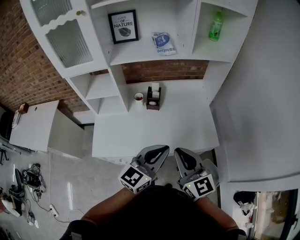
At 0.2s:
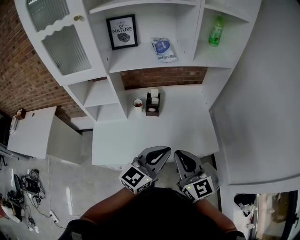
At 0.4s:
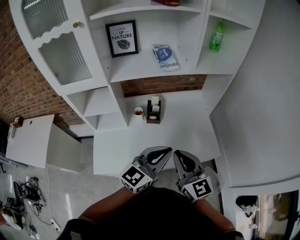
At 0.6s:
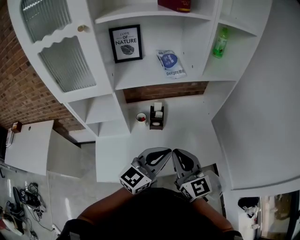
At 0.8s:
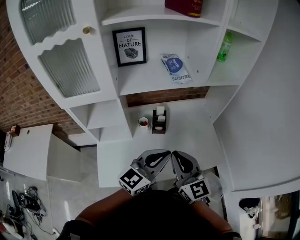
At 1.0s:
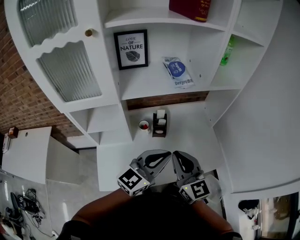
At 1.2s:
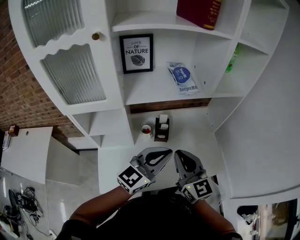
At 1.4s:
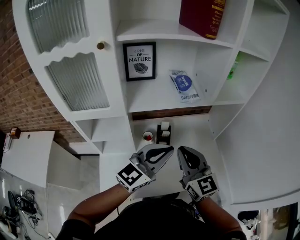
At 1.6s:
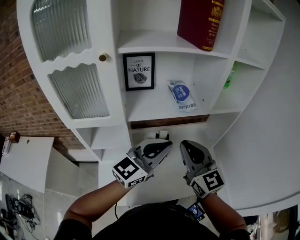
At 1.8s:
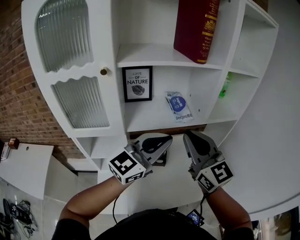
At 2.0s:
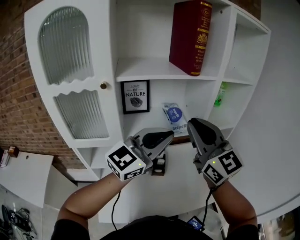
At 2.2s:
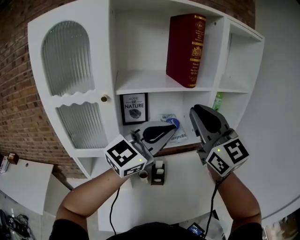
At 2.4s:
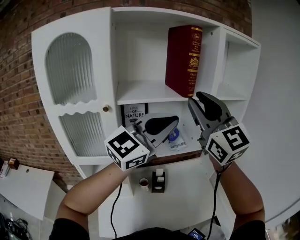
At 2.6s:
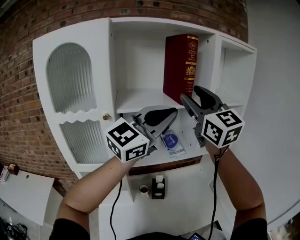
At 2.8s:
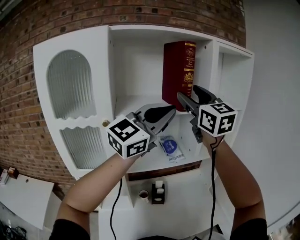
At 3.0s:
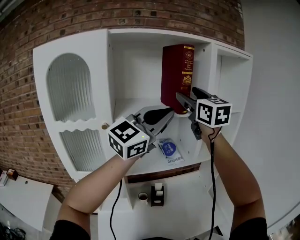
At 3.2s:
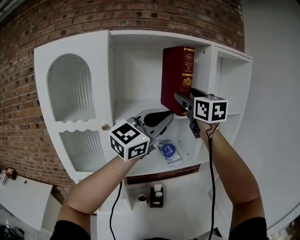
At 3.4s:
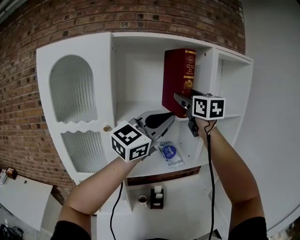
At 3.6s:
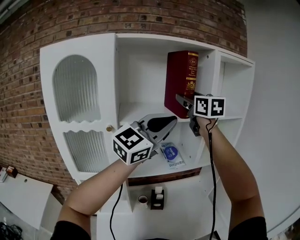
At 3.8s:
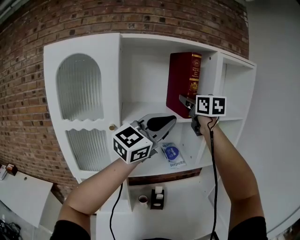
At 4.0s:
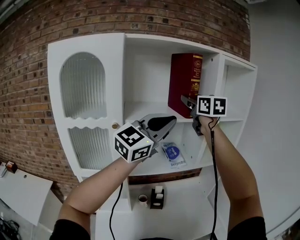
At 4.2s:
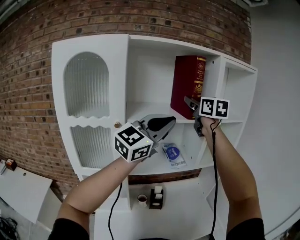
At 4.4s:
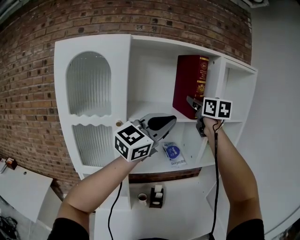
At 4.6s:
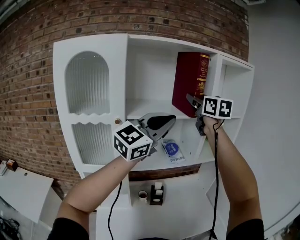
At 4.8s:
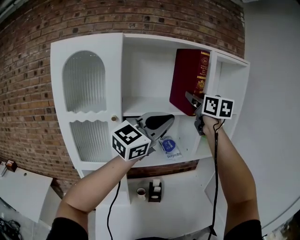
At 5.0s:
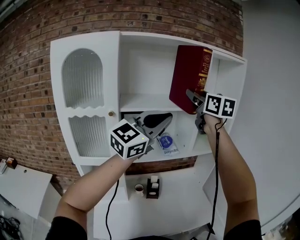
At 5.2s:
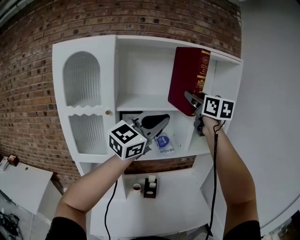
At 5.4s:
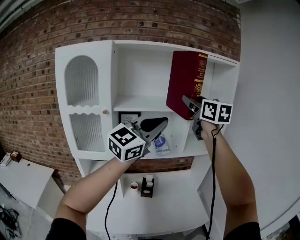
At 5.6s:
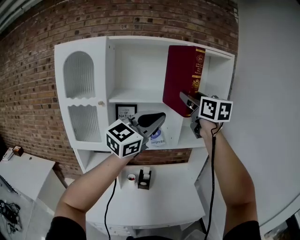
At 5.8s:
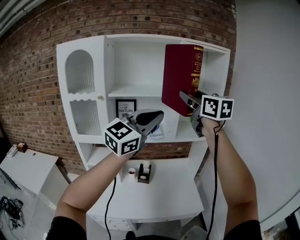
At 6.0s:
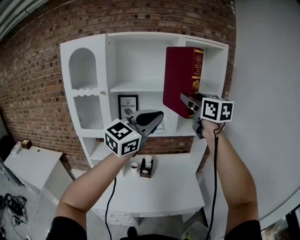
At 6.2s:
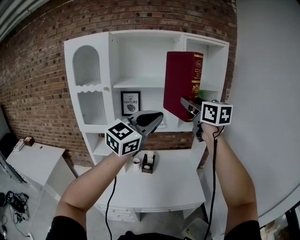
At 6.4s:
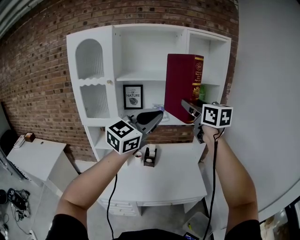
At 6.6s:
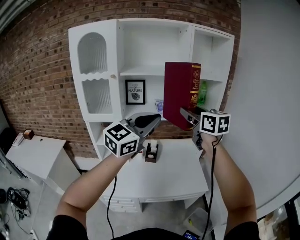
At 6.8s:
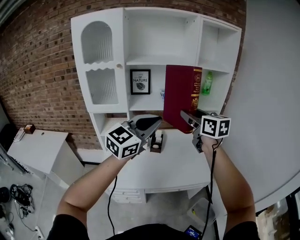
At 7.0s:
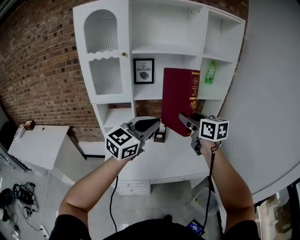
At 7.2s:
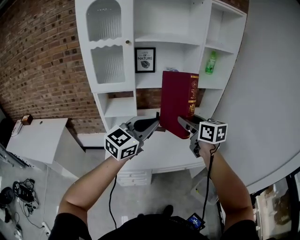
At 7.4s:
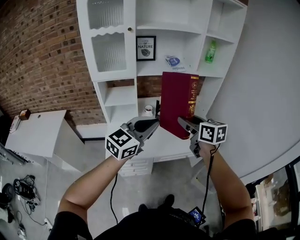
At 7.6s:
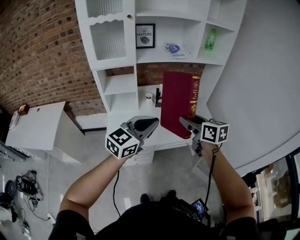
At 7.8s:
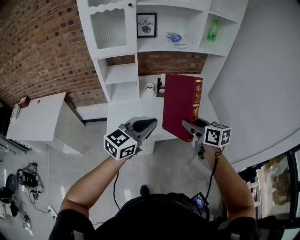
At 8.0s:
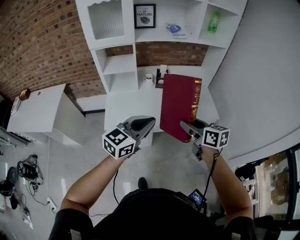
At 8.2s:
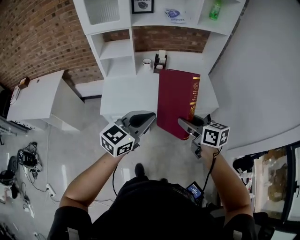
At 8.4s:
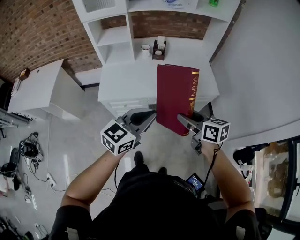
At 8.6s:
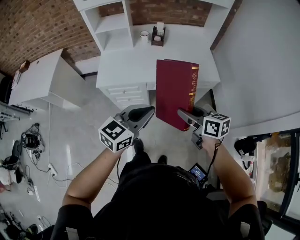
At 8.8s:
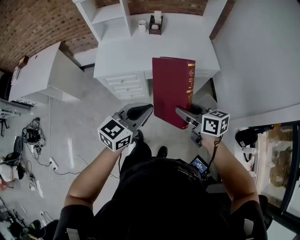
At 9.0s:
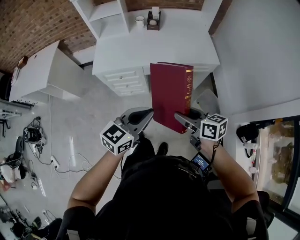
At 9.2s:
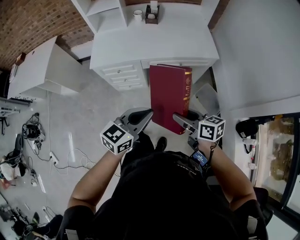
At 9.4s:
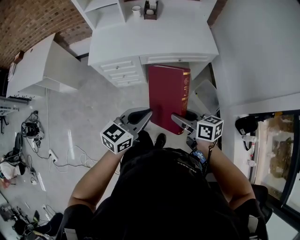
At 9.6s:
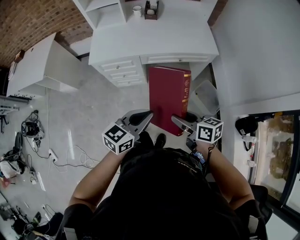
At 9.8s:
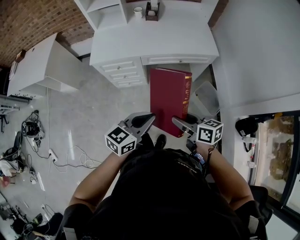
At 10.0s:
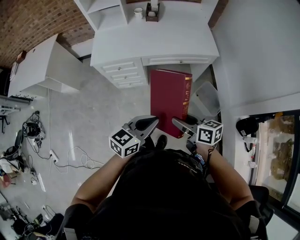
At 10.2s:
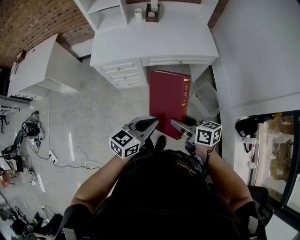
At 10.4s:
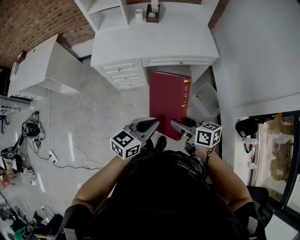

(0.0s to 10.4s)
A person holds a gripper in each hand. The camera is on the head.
0.0s - 1.4s: The right gripper heads forward and to the left, covering some 25 cm; the left gripper goes about 25 cm forward, to the left and upward.
1.4s - 3.0s: The right gripper moves upward and forward, about 40 cm, and opens, while the left gripper moves upward, about 35 cm, and turns by approximately 20 degrees.
3.0s - 4.4s: The grippers stay close to where they were, moving slightly.
4.4s - 6.0s: The left gripper heads to the right and backward, covering approximately 25 cm; the right gripper travels backward and to the right by about 25 cm.
6.0s - 7.4s: The grippers both shift downward, backward and to the left by some 40 cm. The left gripper turns by roughly 20 degrees. The right gripper rotates about 30 degrees.
7.4s - 9.0s: Both grippers move backward, downward and to the right, about 40 cm. The left gripper turns by some 20 degrees, while the right gripper changes its angle by approximately 30 degrees.
9.0s - 10.4s: The right gripper heads backward, covering about 5 cm. Meanwhile the left gripper shifts roughly 10 cm backward and downward.

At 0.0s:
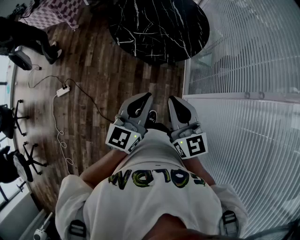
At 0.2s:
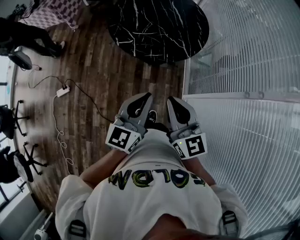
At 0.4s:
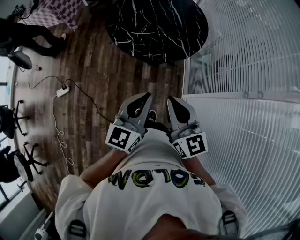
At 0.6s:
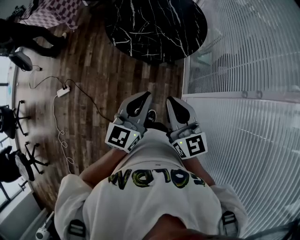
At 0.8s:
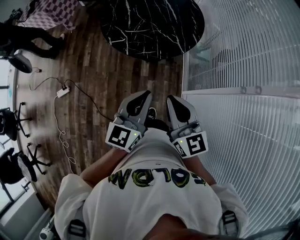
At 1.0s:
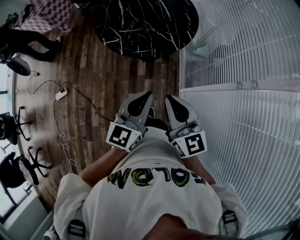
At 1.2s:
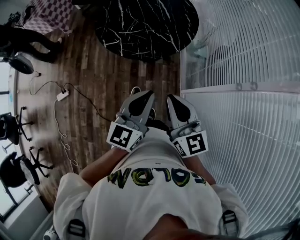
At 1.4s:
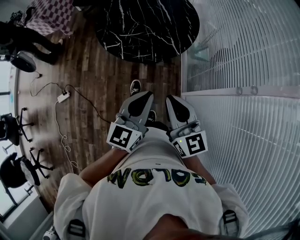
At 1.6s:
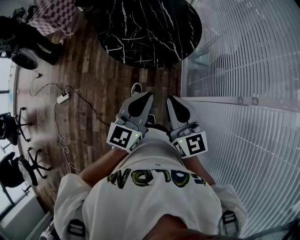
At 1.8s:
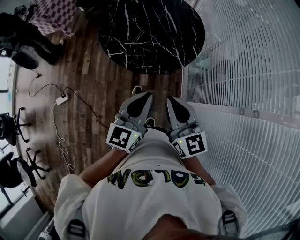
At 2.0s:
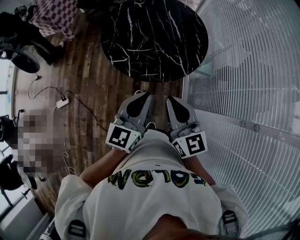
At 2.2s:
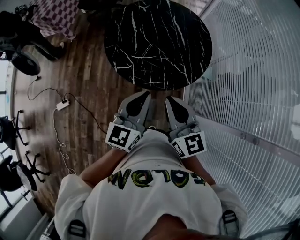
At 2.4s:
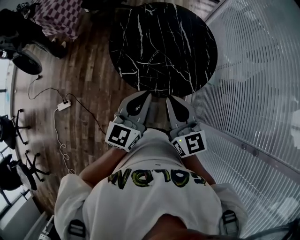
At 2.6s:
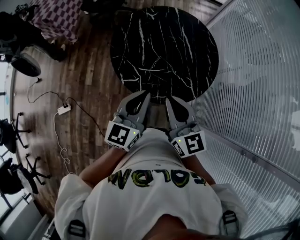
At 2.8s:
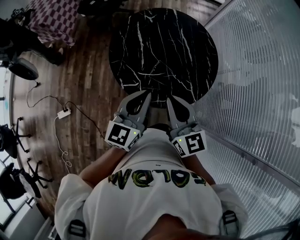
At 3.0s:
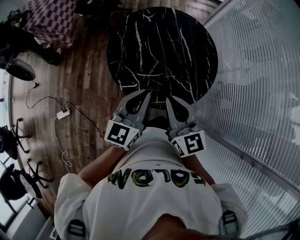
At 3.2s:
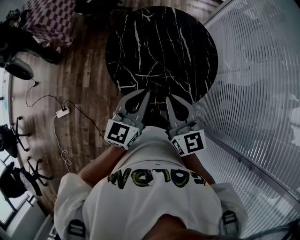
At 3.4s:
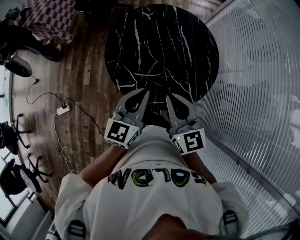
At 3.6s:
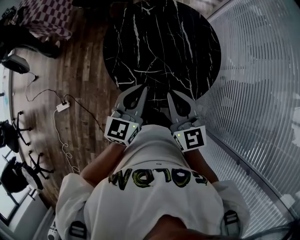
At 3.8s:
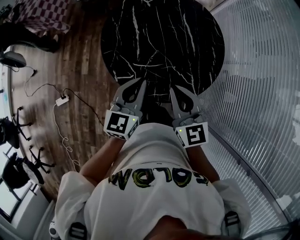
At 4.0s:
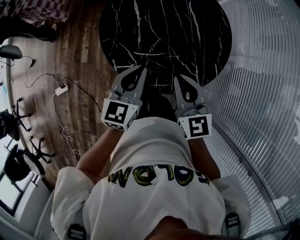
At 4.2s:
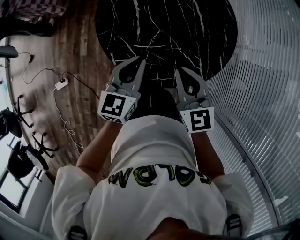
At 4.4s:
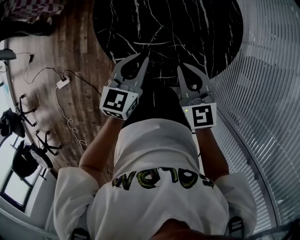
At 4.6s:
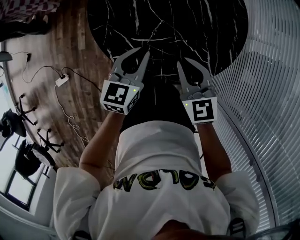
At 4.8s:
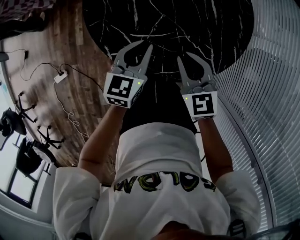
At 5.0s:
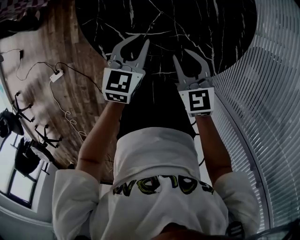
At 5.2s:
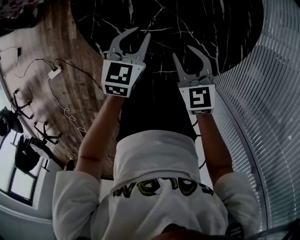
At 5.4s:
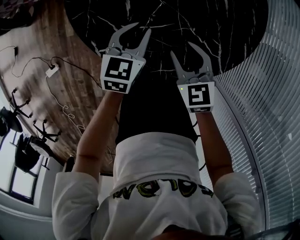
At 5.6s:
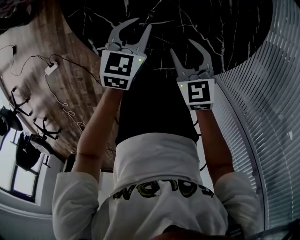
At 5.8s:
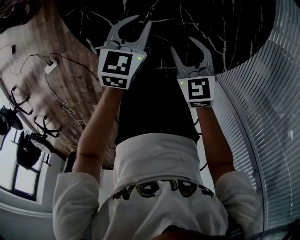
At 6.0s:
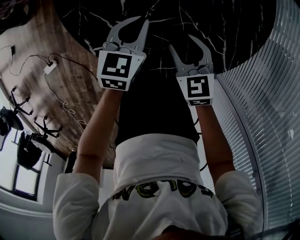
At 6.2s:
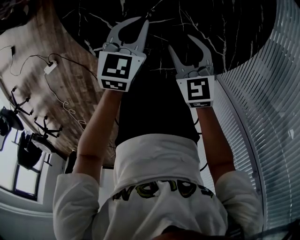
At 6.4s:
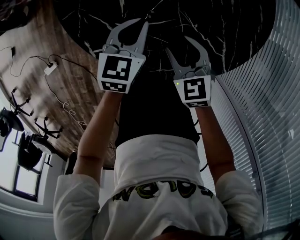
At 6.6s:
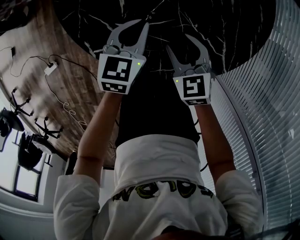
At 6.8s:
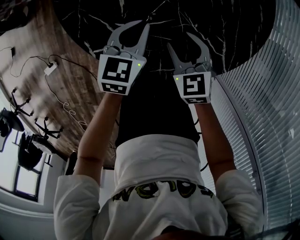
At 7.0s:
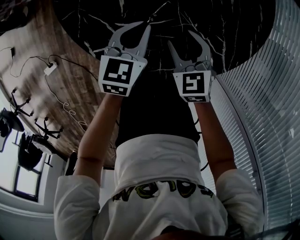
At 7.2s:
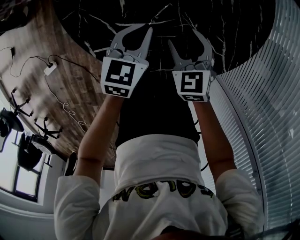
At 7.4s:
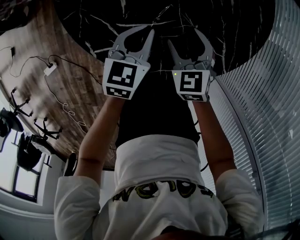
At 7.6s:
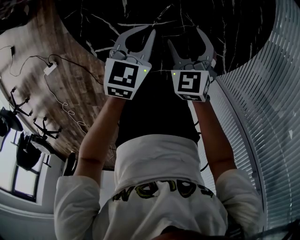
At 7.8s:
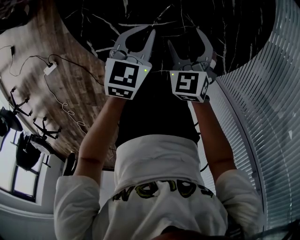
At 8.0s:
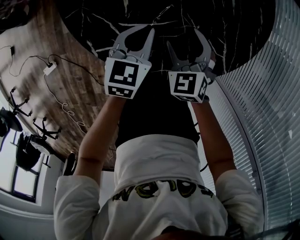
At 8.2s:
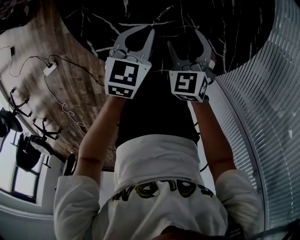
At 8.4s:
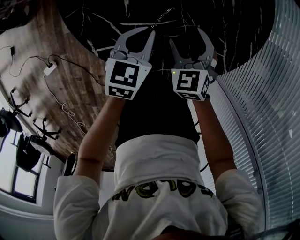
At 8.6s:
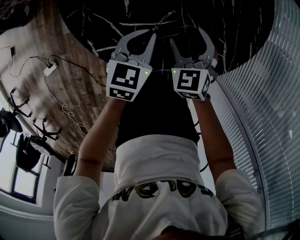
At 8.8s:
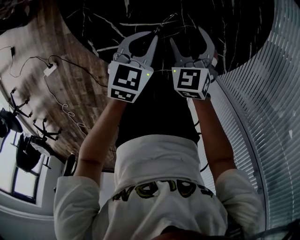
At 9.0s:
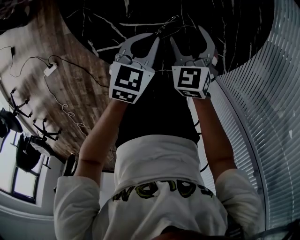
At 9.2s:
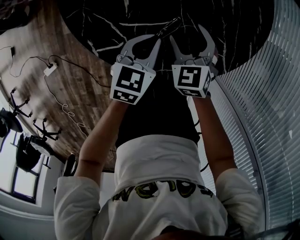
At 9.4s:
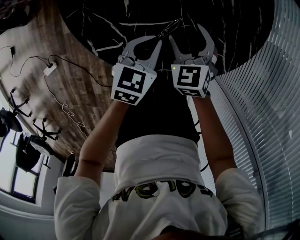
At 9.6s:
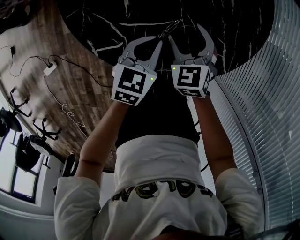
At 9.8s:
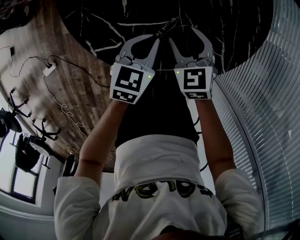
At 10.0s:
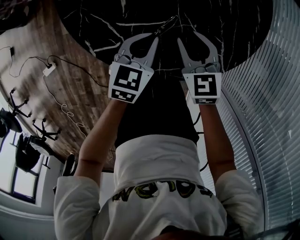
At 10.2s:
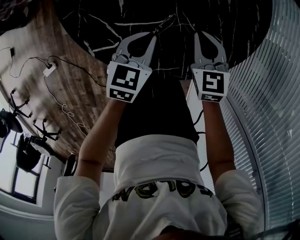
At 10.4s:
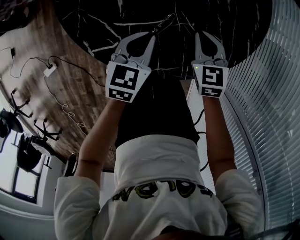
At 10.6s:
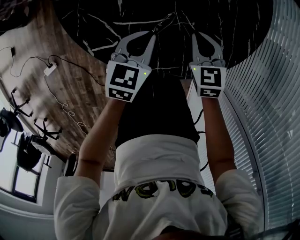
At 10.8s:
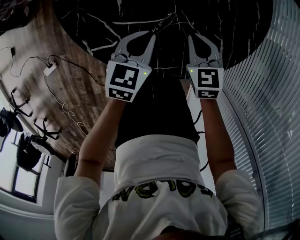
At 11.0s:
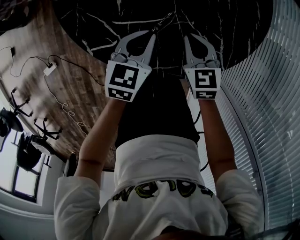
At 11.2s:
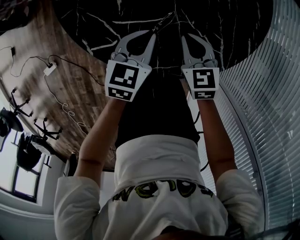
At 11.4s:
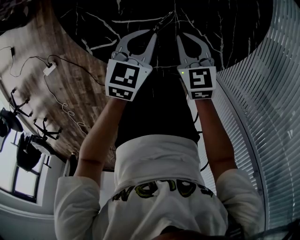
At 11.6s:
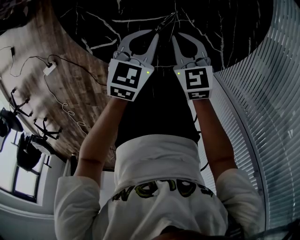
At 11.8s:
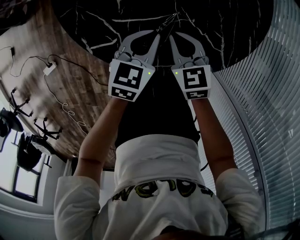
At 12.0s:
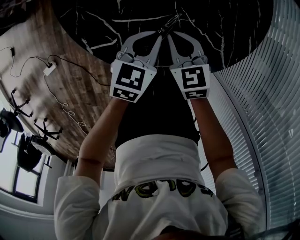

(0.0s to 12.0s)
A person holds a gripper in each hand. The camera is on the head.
0.0s - 1.6s: The two grippers go about 10 cm to the right and forward.
1.6s - 3.0s: Both grippers move forward and to the left, some 35 cm.
3.0s - 4.4s: Both grippers move downward and forward, some 20 cm.
4.4s - 6.0s: The grippers both shift downward by roughly 20 cm. The right gripper opens its fingers.
6.0s - 7.6s: The right gripper opens its fingers.
7.6s - 9.0s: There are only small adjustments of the grippers.
9.0s - 10.4s: The right gripper shifts some 5 cm to the right, and closes its fingers.
10.4s - 12.0s: The right gripper shifts approximately 10 cm to the left.

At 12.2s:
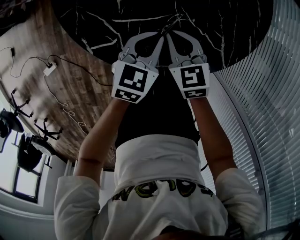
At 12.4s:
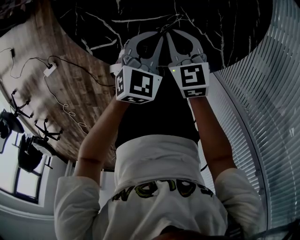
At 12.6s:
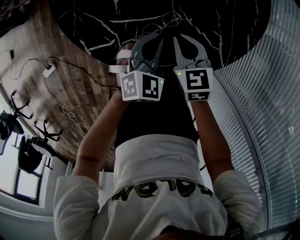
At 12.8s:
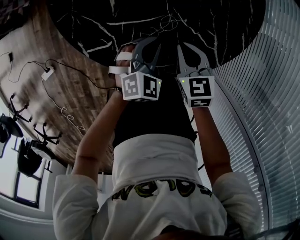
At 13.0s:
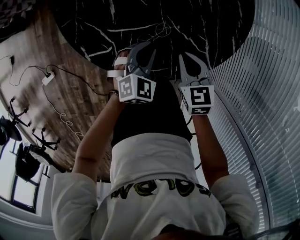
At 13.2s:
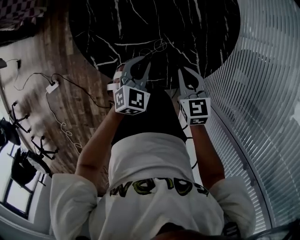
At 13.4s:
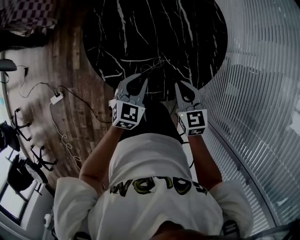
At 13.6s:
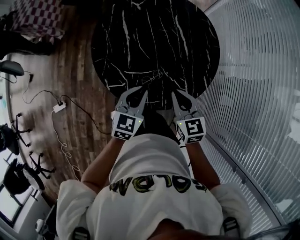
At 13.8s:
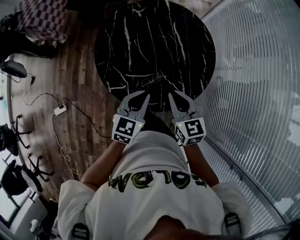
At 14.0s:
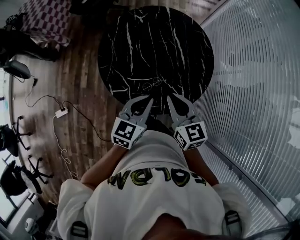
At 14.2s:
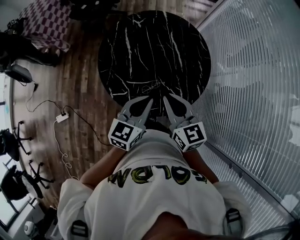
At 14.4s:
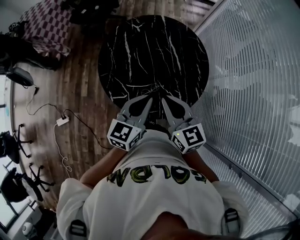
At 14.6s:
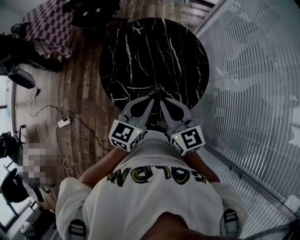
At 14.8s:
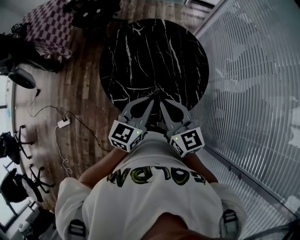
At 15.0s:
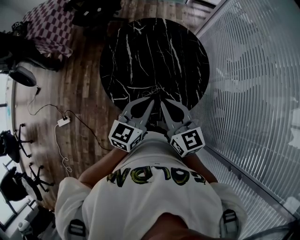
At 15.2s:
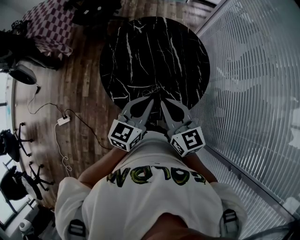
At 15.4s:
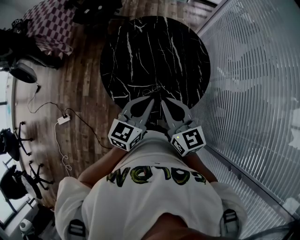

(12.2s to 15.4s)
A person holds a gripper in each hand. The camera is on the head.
12.2s - 13.8s: The two grippers go roughly 25 cm upward.
13.8s - 15.4s: Both grippers move upward, some 10 cm.
